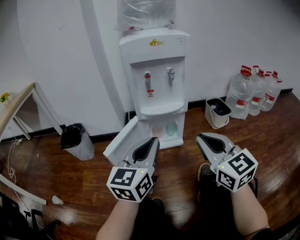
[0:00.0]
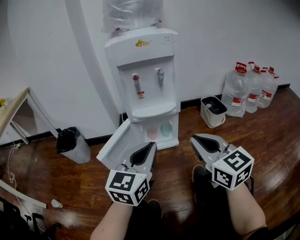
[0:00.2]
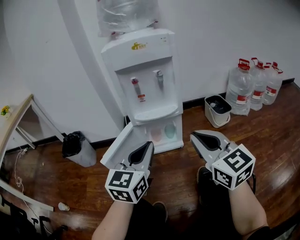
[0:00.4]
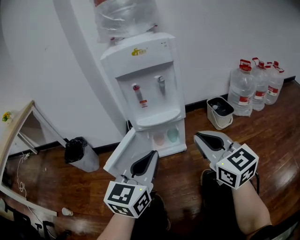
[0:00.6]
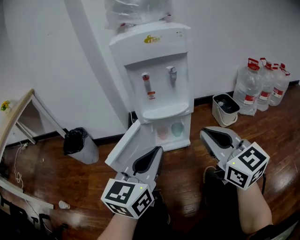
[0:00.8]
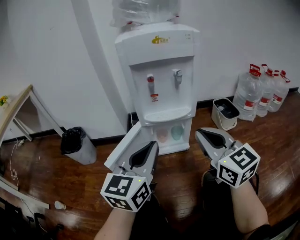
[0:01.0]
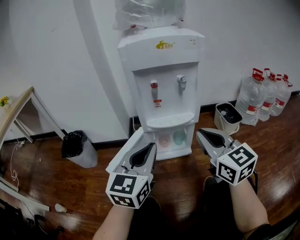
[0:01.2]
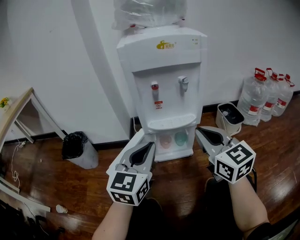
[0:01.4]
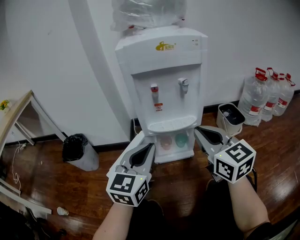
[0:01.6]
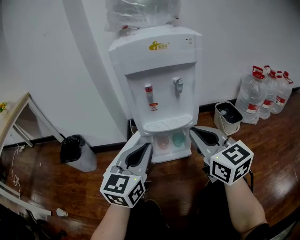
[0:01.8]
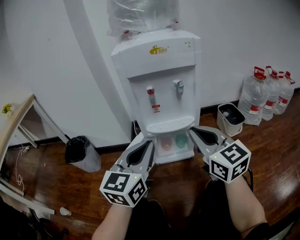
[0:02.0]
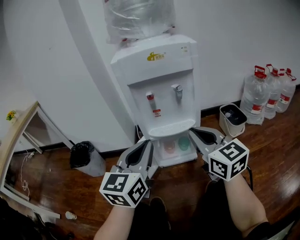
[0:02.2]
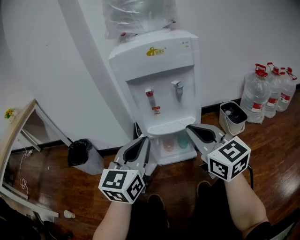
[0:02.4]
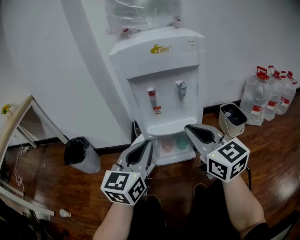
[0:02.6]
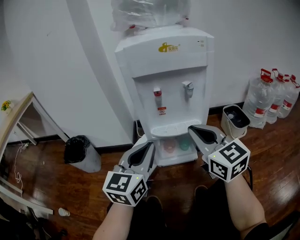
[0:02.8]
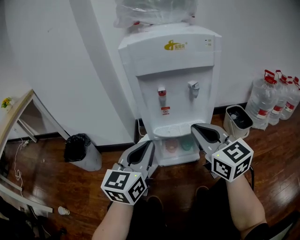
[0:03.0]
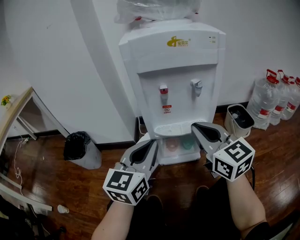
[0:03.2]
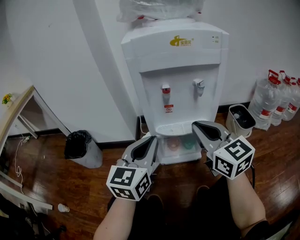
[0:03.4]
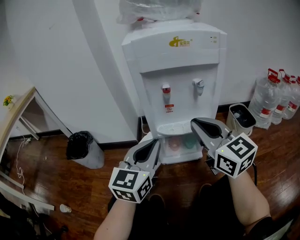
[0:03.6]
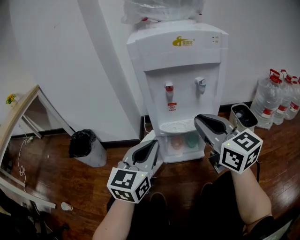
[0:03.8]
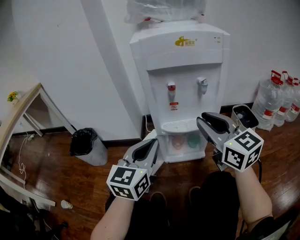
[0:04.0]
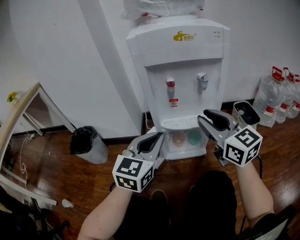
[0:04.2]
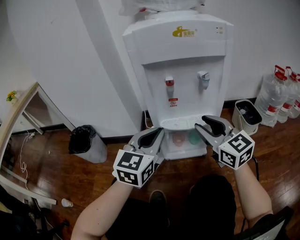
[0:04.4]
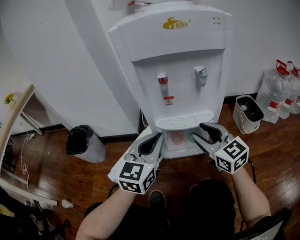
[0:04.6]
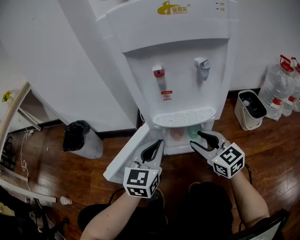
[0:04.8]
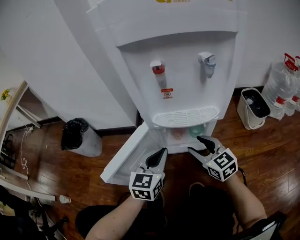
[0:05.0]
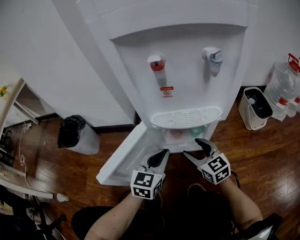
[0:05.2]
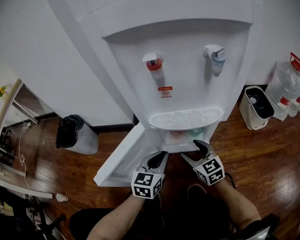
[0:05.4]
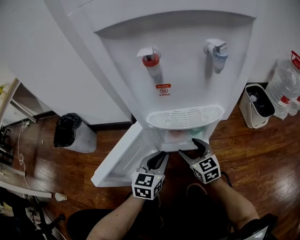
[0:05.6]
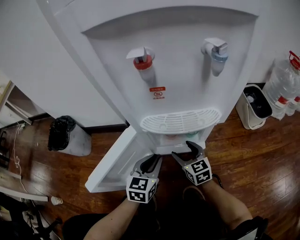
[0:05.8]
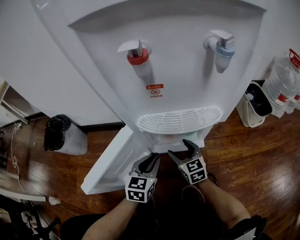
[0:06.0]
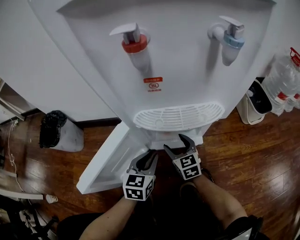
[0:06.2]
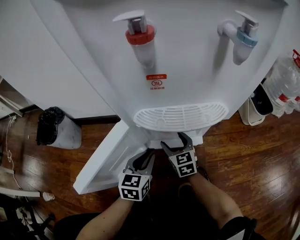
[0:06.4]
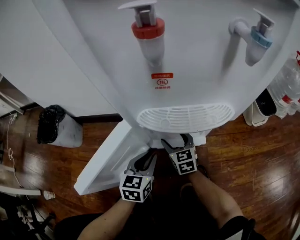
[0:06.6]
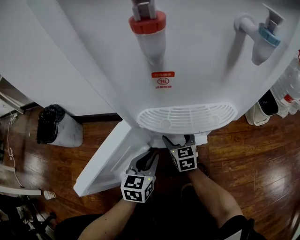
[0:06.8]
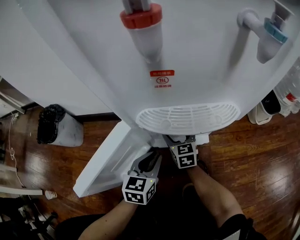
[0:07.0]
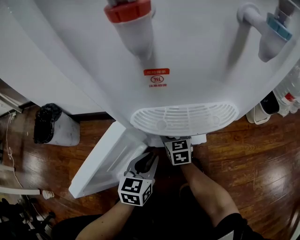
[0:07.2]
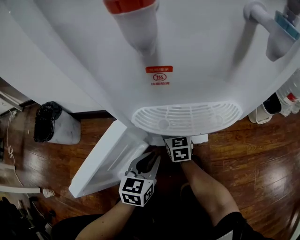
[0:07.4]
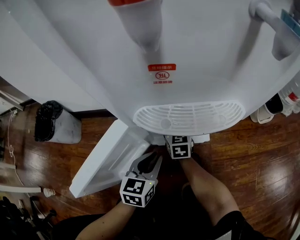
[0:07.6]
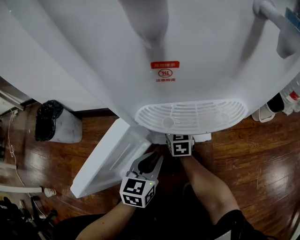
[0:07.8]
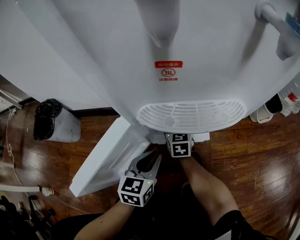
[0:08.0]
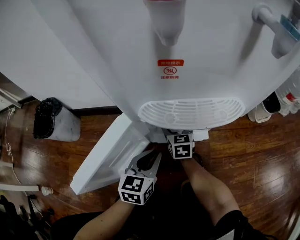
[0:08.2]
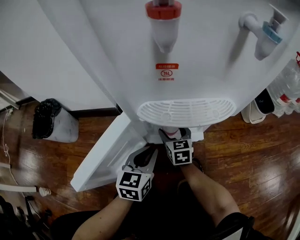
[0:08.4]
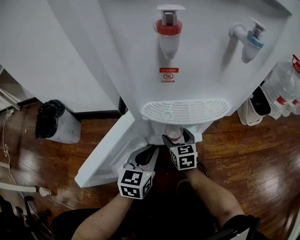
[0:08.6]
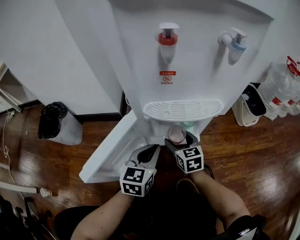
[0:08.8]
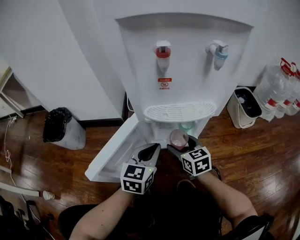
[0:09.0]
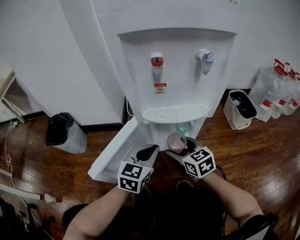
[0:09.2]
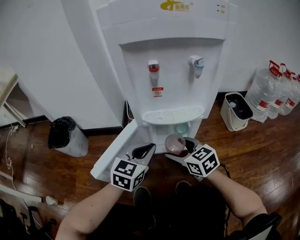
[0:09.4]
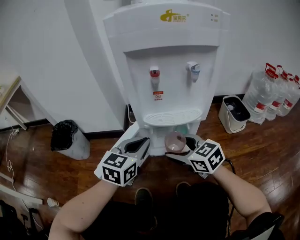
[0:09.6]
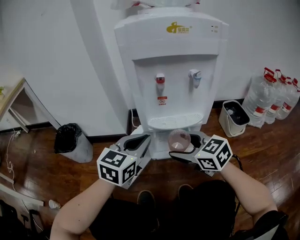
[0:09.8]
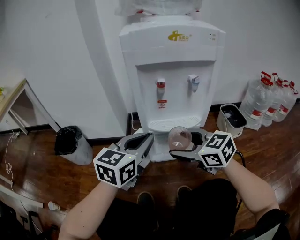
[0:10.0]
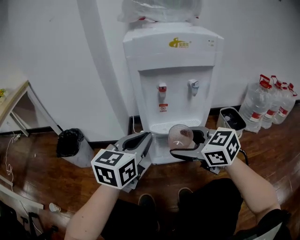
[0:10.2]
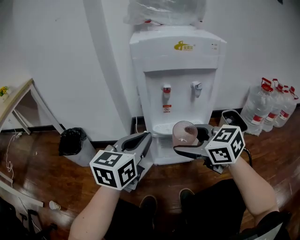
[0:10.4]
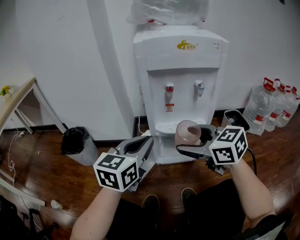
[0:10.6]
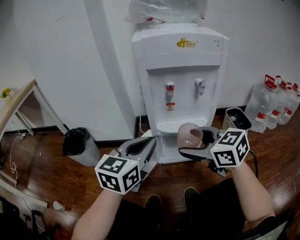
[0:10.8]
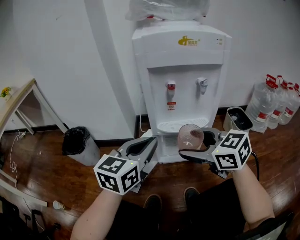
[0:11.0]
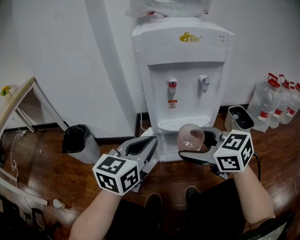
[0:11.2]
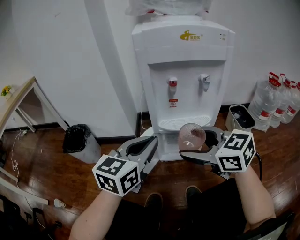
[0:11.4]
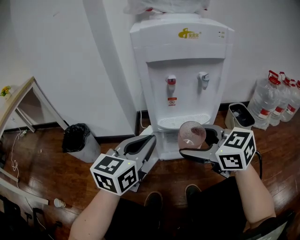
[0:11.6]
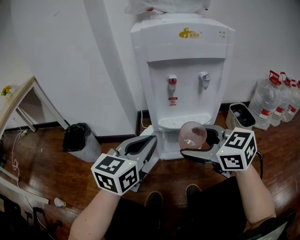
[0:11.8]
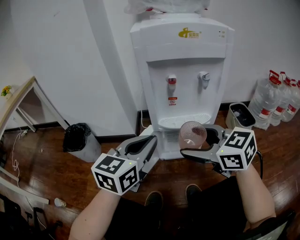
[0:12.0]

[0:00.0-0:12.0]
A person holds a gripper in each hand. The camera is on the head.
0:00.0 to 0:01.6: Both grippers travel together forward, roughly 15 cm.
0:01.6 to 0:03.0: The right gripper shifts approximately 5 cm forward.
0:03.0 to 0:04.4: The right gripper travels downward by roughly 5 cm, and opens; the left gripper ends up roughly 5 cm from where it was.
0:04.4 to 0:06.0: The two grippers go about 35 cm downward. The right gripper rotates about 20 degrees, and opens. Meanwhile the left gripper swivels approximately 20 degrees.
0:06.0 to 0:07.6: The right gripper goes about 10 cm forward and downward.
0:07.6 to 0:09.0: The right gripper goes roughly 20 cm backward and upward. The left gripper goes roughly 10 cm upward.
0:09.0 to 0:10.4: Both grippers travel together upward, some 30 cm. The right gripper changes its angle by roughly 30 degrees.
0:10.4 to 0:12.0: The grippers move only a little.

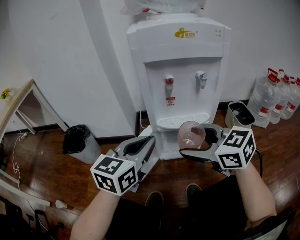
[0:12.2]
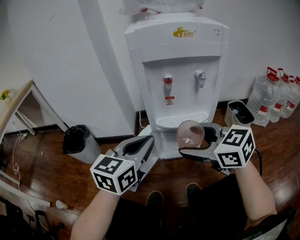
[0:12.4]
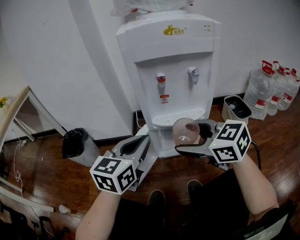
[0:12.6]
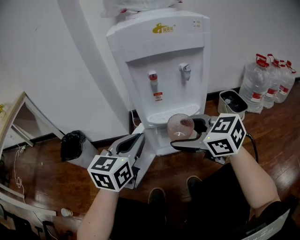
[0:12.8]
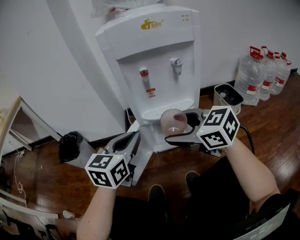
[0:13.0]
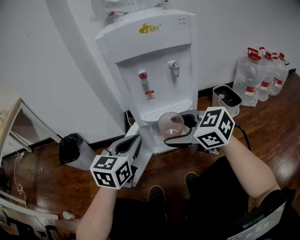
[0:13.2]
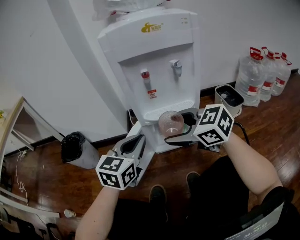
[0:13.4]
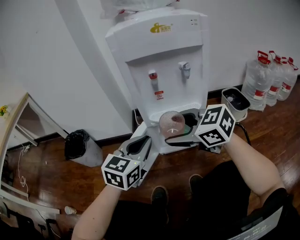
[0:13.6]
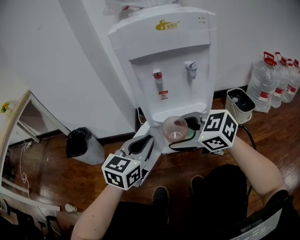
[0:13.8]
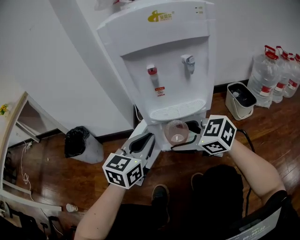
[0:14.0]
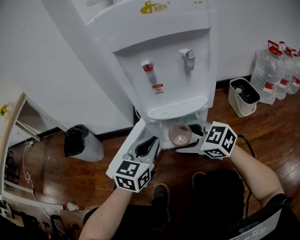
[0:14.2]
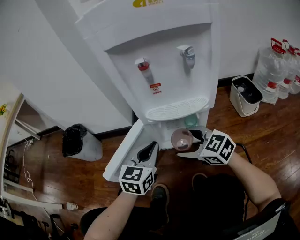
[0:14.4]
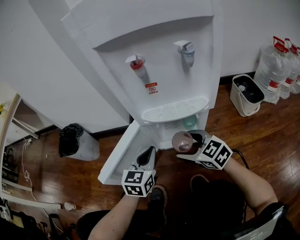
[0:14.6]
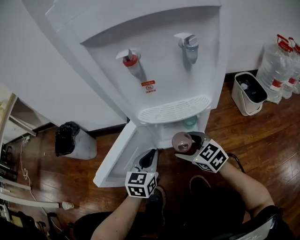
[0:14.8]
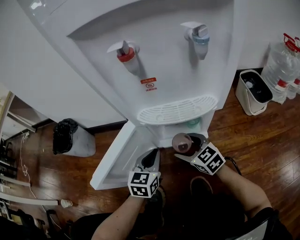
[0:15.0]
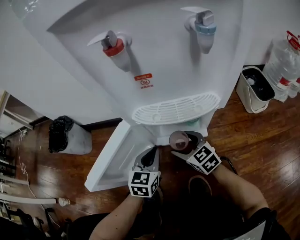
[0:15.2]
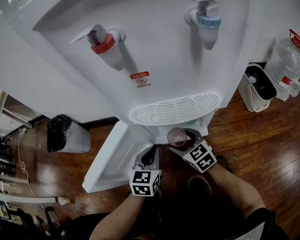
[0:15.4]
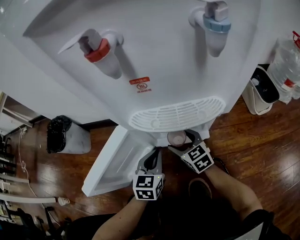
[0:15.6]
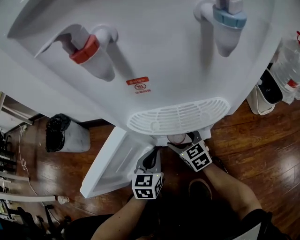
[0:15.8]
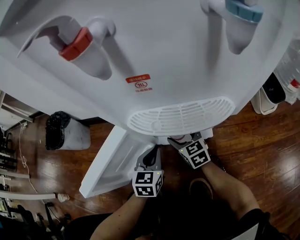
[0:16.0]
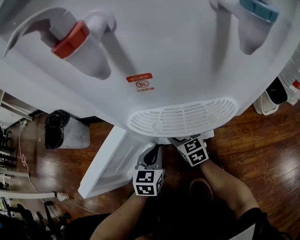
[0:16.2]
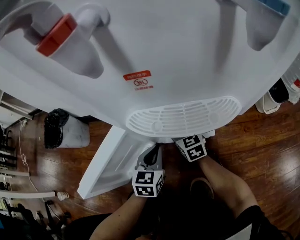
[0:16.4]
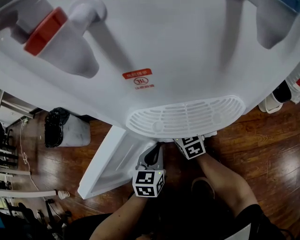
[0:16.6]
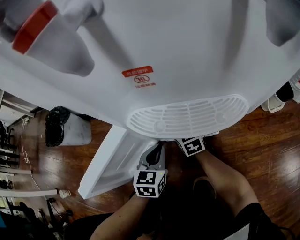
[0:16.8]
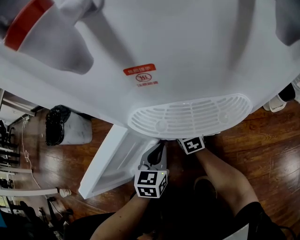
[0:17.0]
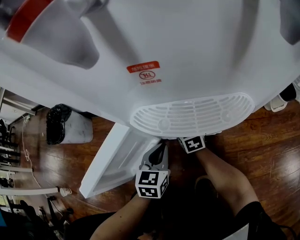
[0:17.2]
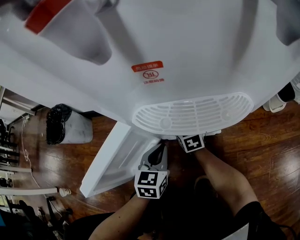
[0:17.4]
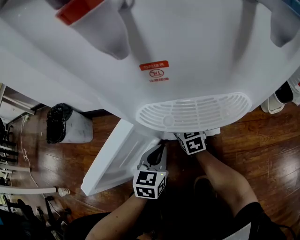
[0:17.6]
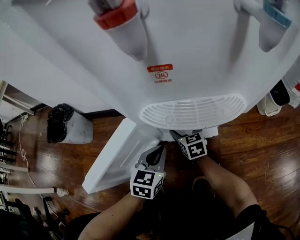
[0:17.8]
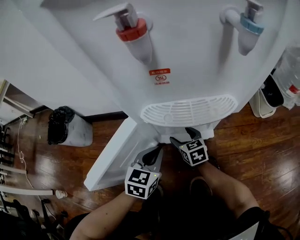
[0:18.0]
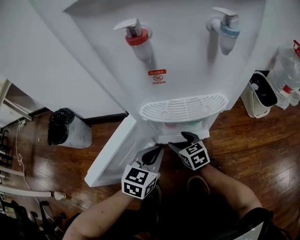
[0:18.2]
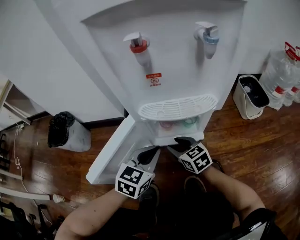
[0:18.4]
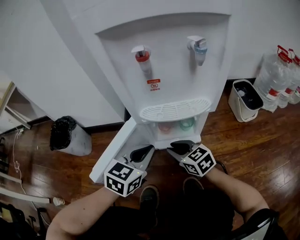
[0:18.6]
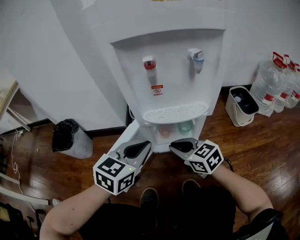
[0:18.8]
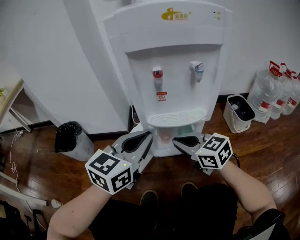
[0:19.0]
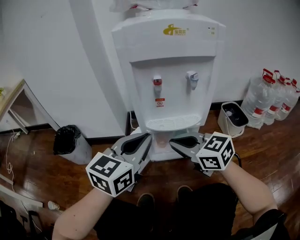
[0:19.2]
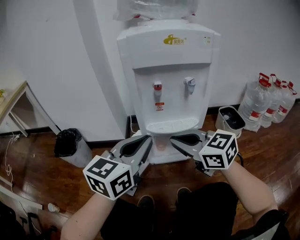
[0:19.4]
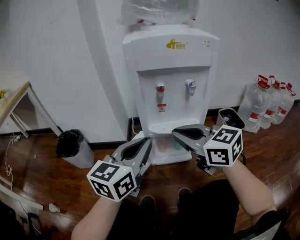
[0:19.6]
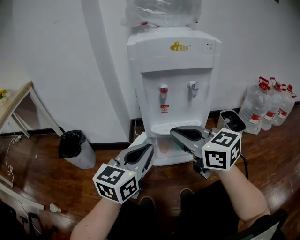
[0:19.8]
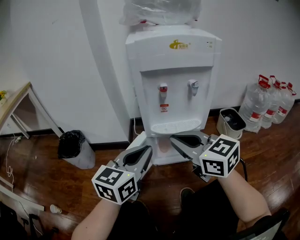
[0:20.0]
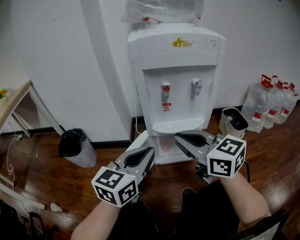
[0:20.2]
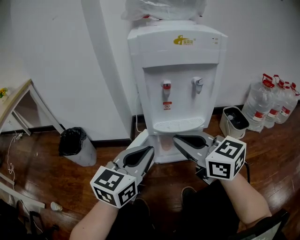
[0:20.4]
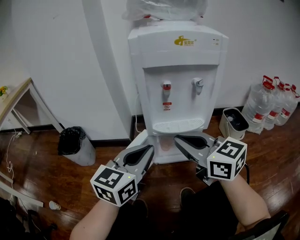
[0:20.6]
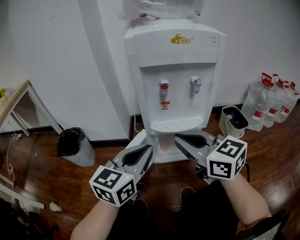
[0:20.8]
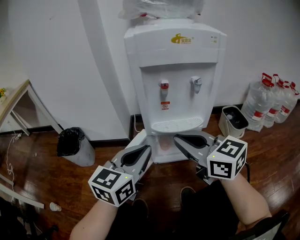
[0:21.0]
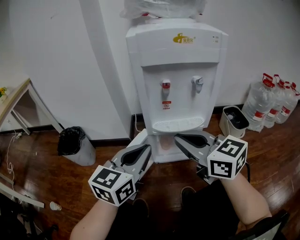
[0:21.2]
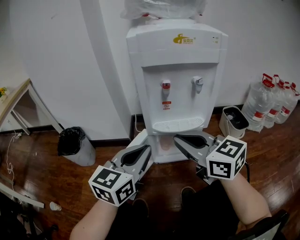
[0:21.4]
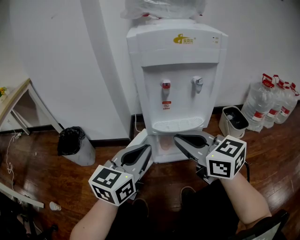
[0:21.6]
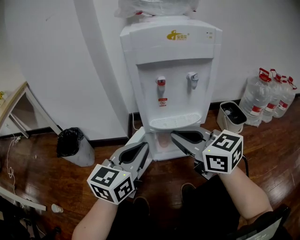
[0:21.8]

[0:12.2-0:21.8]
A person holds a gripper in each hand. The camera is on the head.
0:12.2 to 0:13.8: The left gripper travels downward by some 5 cm, and closes its fingers. Meanwhile the right gripper moves about 5 cm.
0:13.8 to 0:15.4: The two grippers go roughly 30 cm downward. The left gripper swivels roughly 20 degrees. The right gripper swivels about 20 degrees.
0:15.4 to 0:17.0: The right gripper heads forward, covering roughly 10 cm.
0:17.0 to 0:18.6: The right gripper heads backward and upward, covering roughly 20 cm, and closes its fingers; the left gripper goes about 20 cm upward, and changes its angle by some 20 degrees.
0:18.6 to 0:20.2: The right gripper heads upward, covering roughly 35 cm, and swivels some 20 degrees; the left gripper shifts roughly 20 cm upward, swivels some 20 degrees, and opens its fingers.
0:20.2 to 0:21.8: The grippers move only a little.

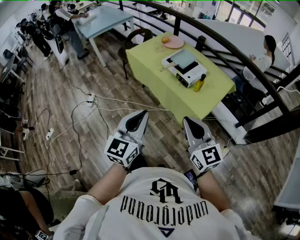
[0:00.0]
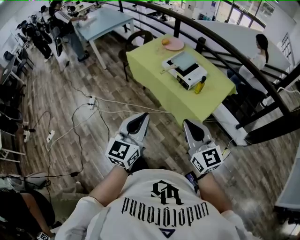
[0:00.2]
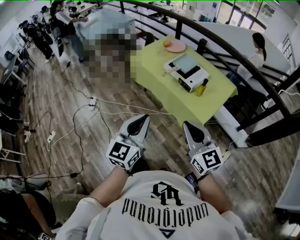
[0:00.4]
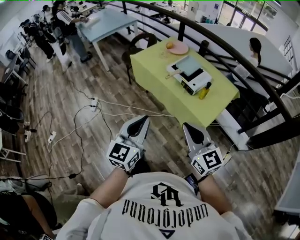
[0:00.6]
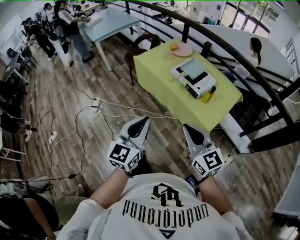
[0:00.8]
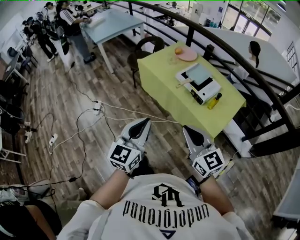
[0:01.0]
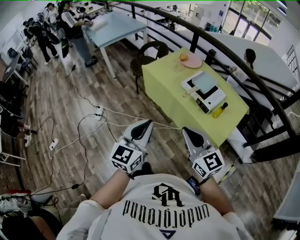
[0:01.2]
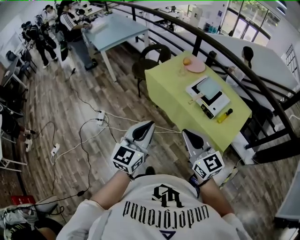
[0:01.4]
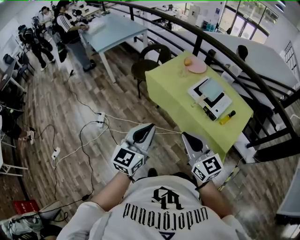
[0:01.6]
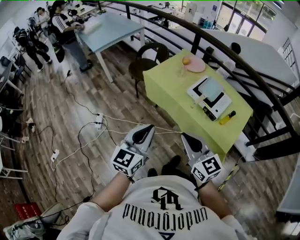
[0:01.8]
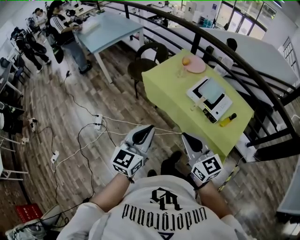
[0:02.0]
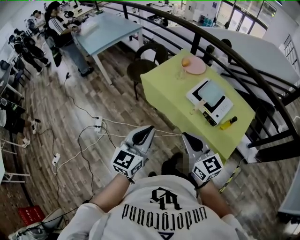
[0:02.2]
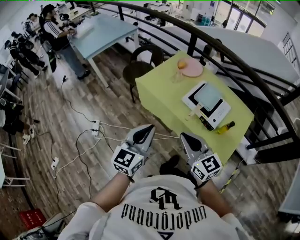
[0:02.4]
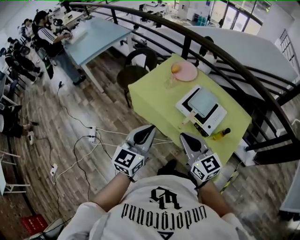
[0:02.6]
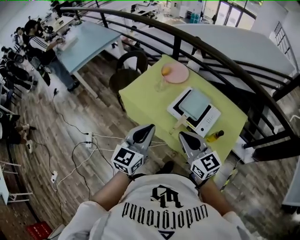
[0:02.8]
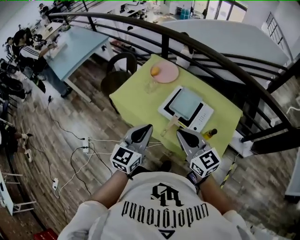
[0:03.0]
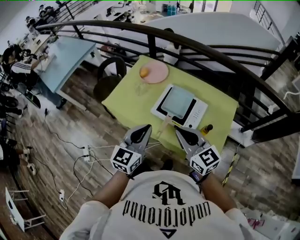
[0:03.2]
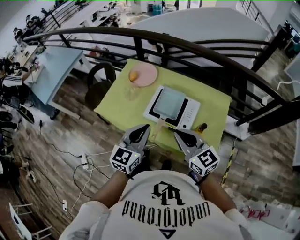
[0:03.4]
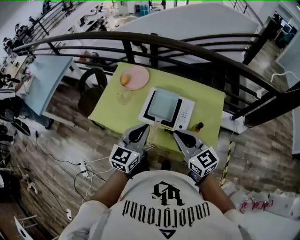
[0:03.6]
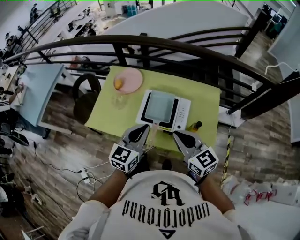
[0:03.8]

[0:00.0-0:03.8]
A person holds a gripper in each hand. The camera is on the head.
0:00.0 to 0:01.2: The left gripper goes roughly 20 cm forward and to the left, while the right gripper is displaced to the left and forward by roughly 20 cm.
0:01.2 to 0:02.6: Both grippers travel together forward, roughly 25 cm.
0:02.6 to 0:03.8: The right gripper ends up approximately 20 cm from where it was, and rotates some 20 degrees; the left gripper ends up roughly 25 cm from where it was, and turns by approximately 30 degrees.
